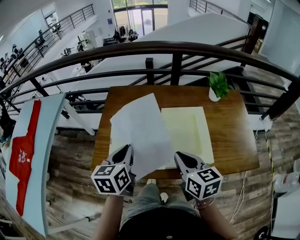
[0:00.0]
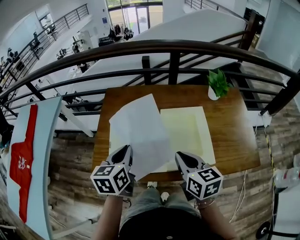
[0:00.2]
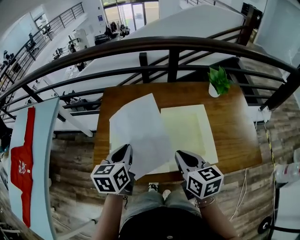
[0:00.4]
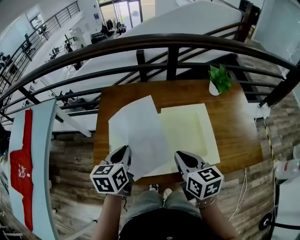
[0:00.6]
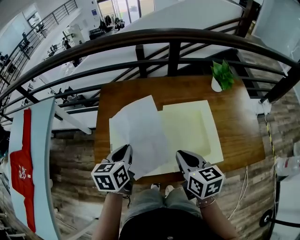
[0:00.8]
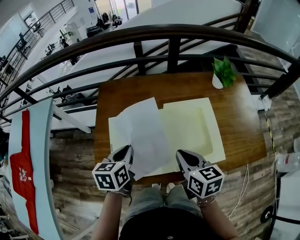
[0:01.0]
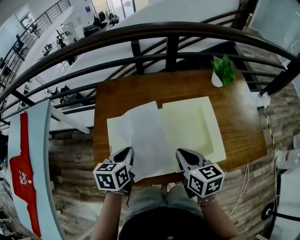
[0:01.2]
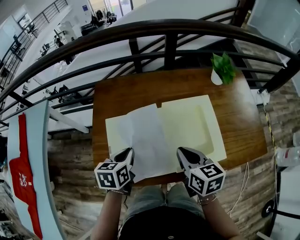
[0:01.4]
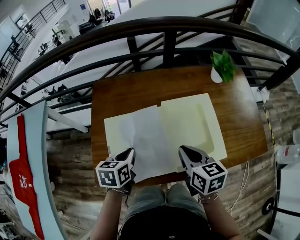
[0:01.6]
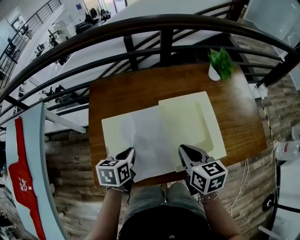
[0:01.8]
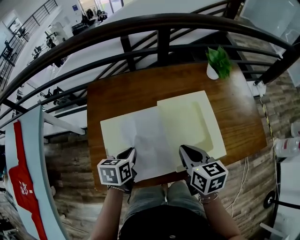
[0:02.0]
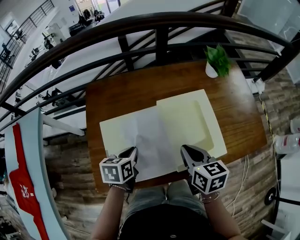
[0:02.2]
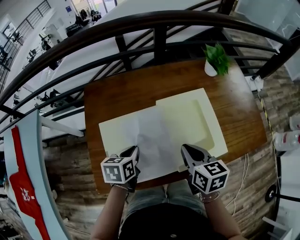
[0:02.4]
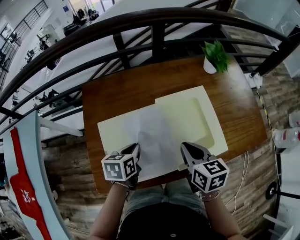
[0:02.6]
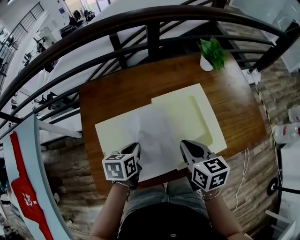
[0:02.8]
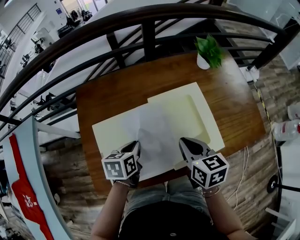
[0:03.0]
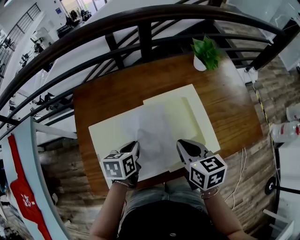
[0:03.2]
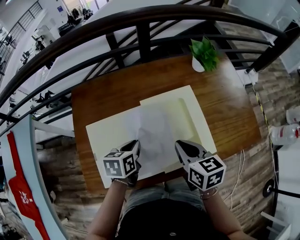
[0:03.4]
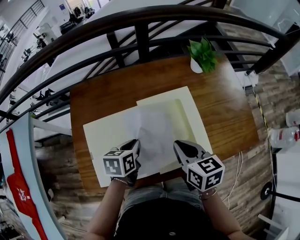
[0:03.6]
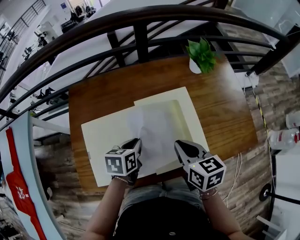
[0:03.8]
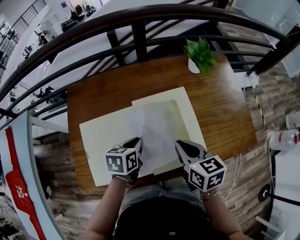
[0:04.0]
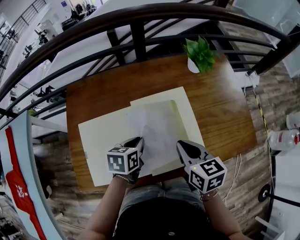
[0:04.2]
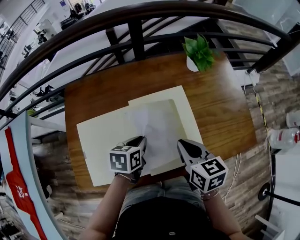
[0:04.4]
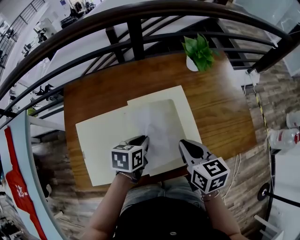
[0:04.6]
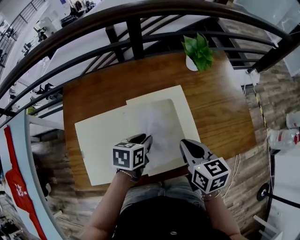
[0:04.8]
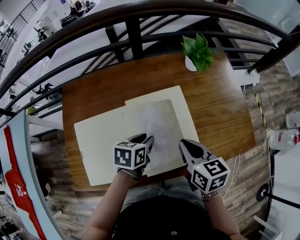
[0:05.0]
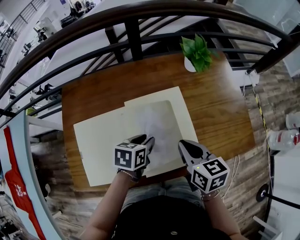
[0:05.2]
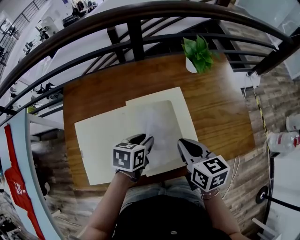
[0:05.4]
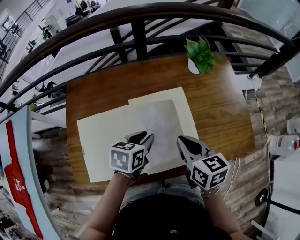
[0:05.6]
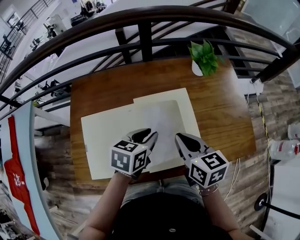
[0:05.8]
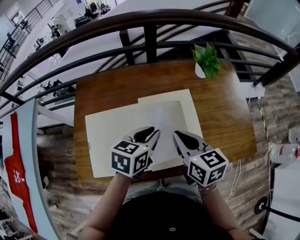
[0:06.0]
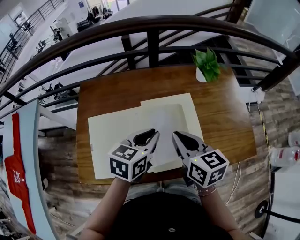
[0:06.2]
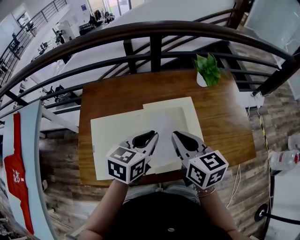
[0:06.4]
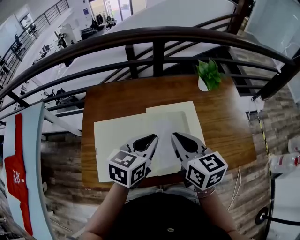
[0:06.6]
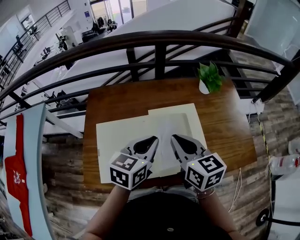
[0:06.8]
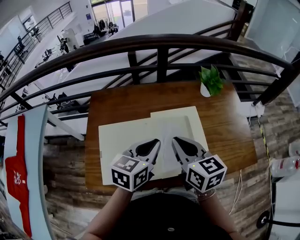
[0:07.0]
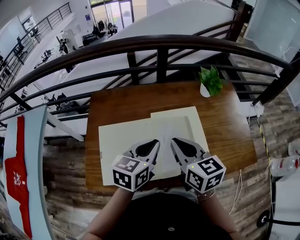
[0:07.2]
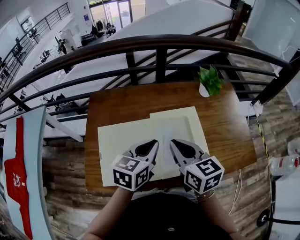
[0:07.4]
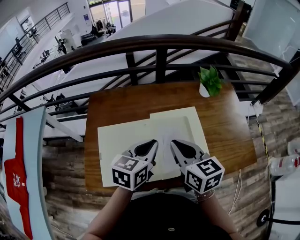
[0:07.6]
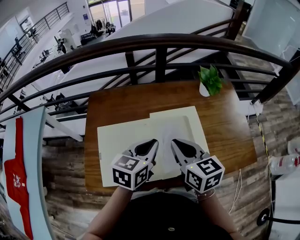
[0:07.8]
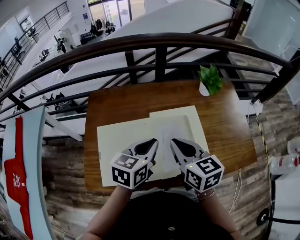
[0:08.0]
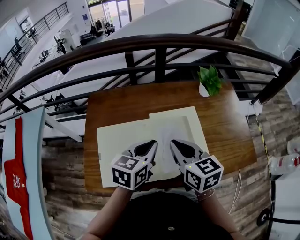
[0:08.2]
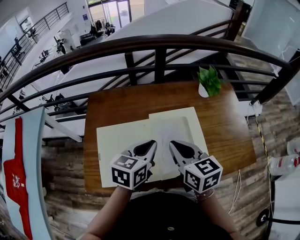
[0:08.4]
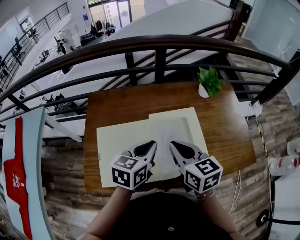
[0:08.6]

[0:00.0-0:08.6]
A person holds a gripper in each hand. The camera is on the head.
0.0 to 1.4 s: The right gripper is displaced forward and downward by about 10 cm. The left gripper heads downward and forward, covering some 10 cm, and changes its angle by some 20 degrees.
1.4 to 2.8 s: The left gripper ends up some 5 cm from where it was.
2.8 to 4.4 s: Both grippers travel together to the right, some 10 cm.
4.4 to 5.8 s: The left gripper shifts about 5 cm upward.
5.8 to 7.2 s: The left gripper heads upward, covering roughly 10 cm, while the right gripper moves to the left and upward, some 10 cm.
7.2 to 8.6 s: The grippers make only small movements.

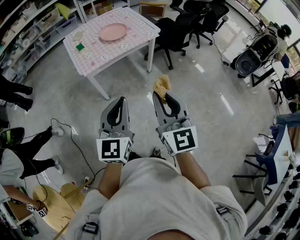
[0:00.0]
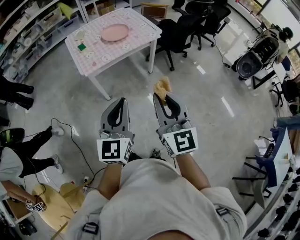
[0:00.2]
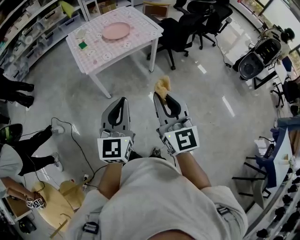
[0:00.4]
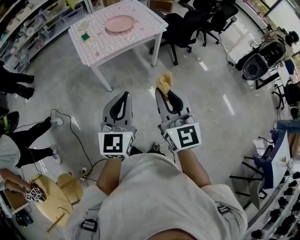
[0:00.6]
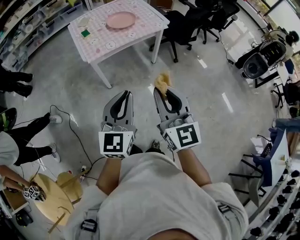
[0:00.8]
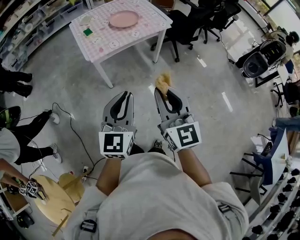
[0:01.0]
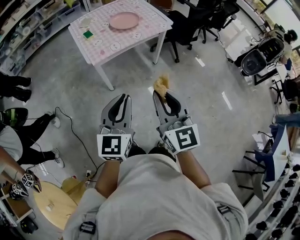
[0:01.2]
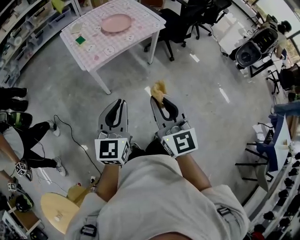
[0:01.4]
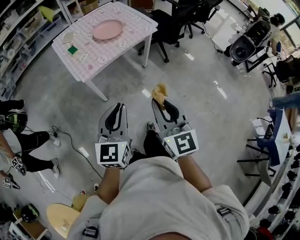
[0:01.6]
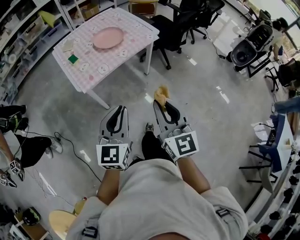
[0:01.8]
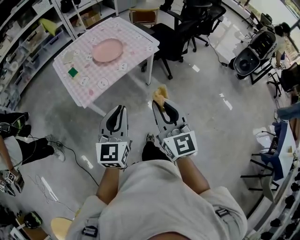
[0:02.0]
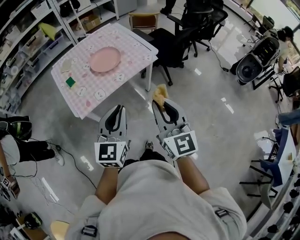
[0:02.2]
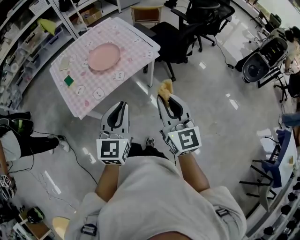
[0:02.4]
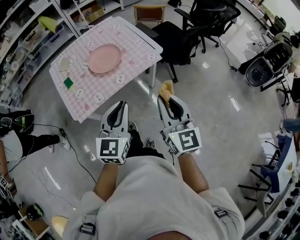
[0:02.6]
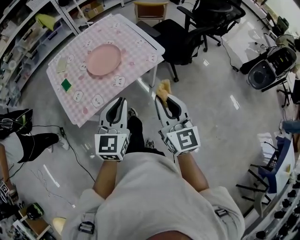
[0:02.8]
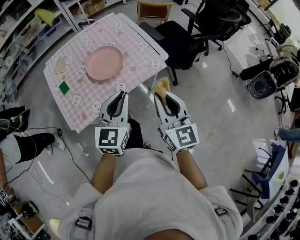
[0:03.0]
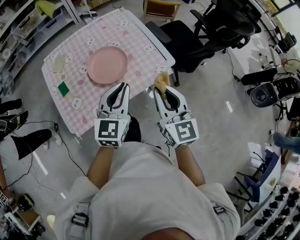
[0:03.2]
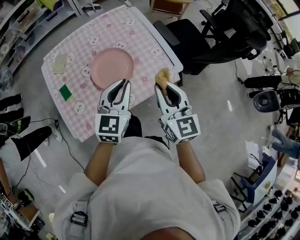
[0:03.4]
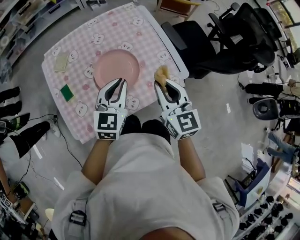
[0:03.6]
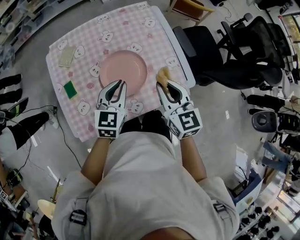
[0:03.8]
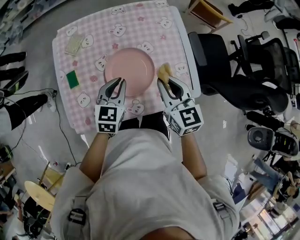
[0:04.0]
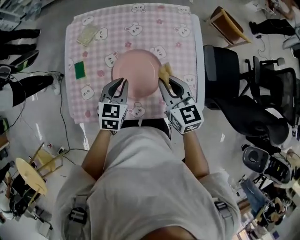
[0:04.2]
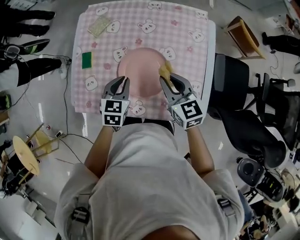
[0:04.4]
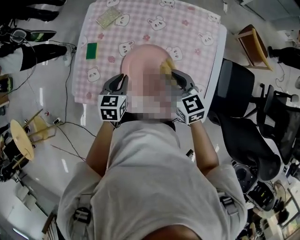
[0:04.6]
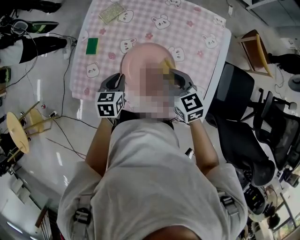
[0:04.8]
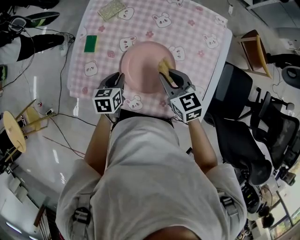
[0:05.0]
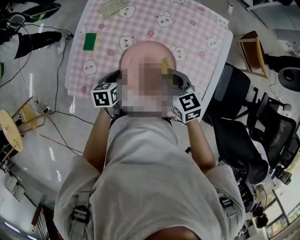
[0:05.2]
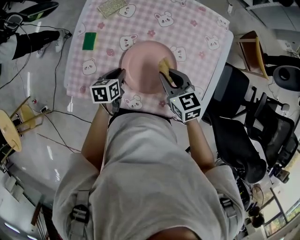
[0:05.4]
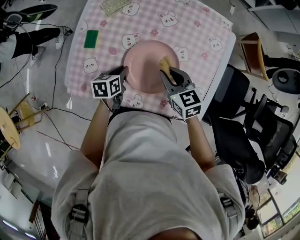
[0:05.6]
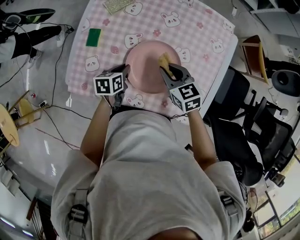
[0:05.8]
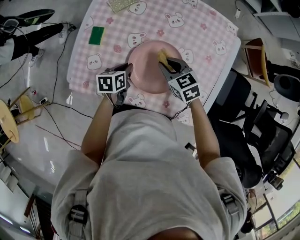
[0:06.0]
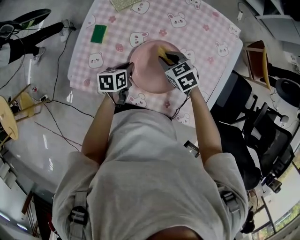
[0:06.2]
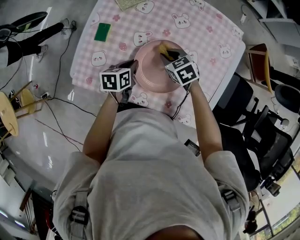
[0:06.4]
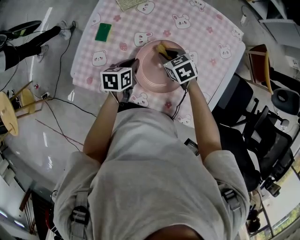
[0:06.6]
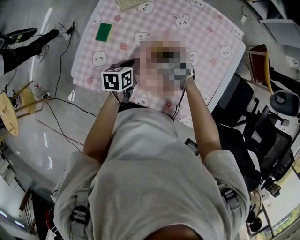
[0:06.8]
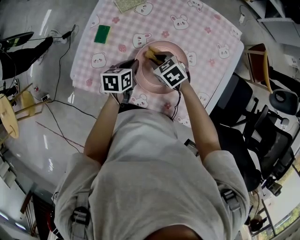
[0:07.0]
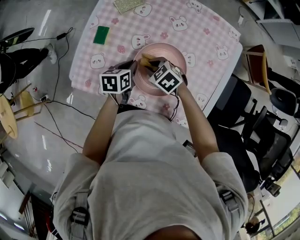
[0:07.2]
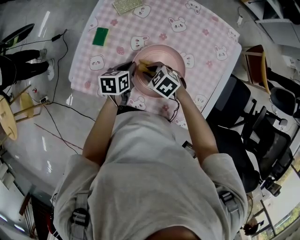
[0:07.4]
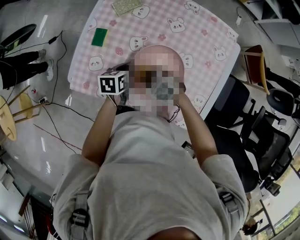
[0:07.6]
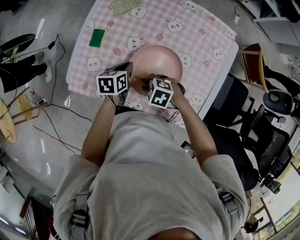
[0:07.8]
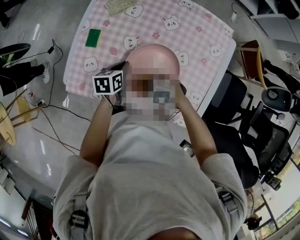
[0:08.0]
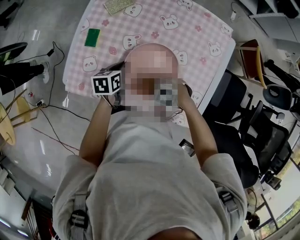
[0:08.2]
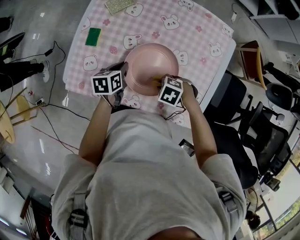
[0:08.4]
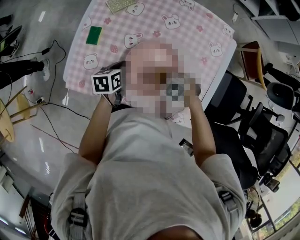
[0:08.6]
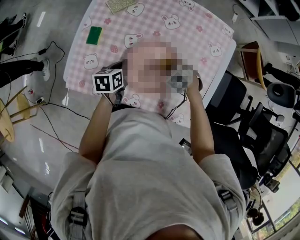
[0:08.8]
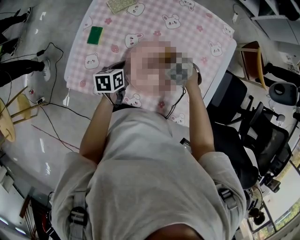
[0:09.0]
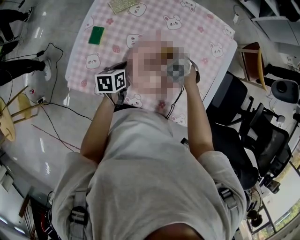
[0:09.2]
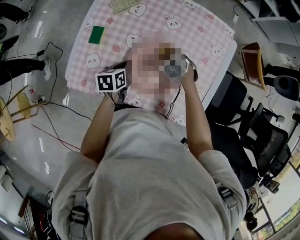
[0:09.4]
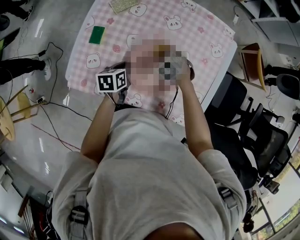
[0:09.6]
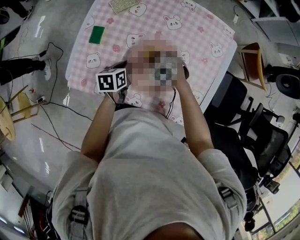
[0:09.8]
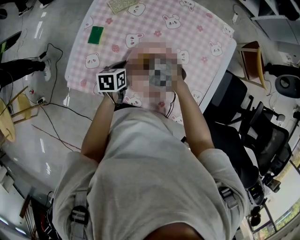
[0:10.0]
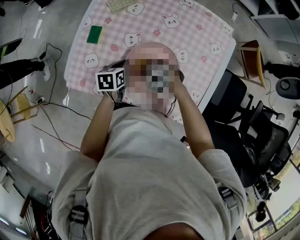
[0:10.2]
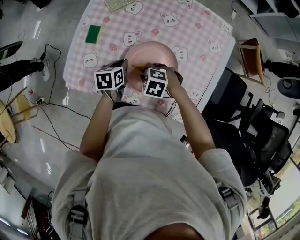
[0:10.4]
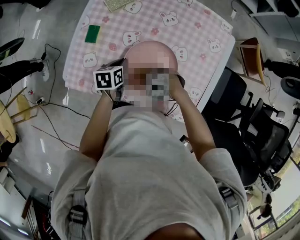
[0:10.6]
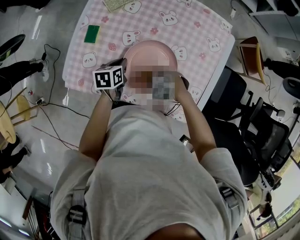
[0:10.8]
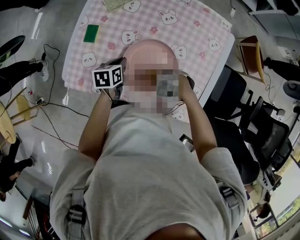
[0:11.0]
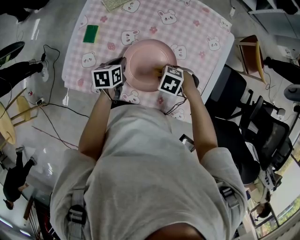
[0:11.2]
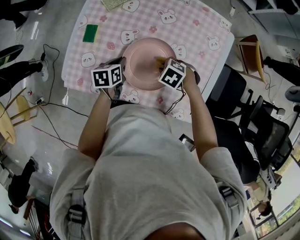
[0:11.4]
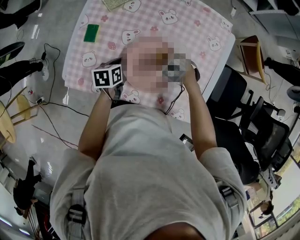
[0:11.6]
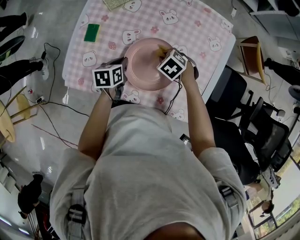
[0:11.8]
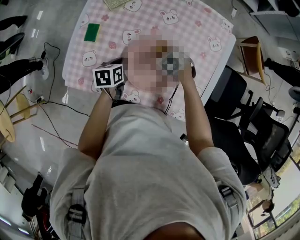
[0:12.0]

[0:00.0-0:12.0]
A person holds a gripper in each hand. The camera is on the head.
0.0 to 1.6 s: The left gripper goes some 10 cm to the left, downward and forward; the right gripper travels to the left and downward by about 10 cm.
1.6 to 3.0 s: The two grippers travel together, forward, some 40 cm.
3.0 to 4.4 s: The right gripper changes place by approximately 40 cm, and turns by about 60 degrees. Meanwhile the left gripper ends up roughly 35 cm from where it was, and tilts its fingers about 30 degrees downward.
4.4 to 6.0 s: The left gripper shifts some 10 cm downward, and swivels some 40 degrees; the right gripper goes approximately 15 cm downward, forward and to the left, and swivels roughly 30 degrees.
6.0 to 7.6 s: The right gripper heads to the left, backward and downward, covering approximately 10 cm, and rotates roughly 40 degrees.
7.6 to 9.0 s: The right gripper moves about 15 cm, and rotates some 20 degrees.
9.0 to 10.4 s: The right gripper moves some 15 cm, and changes its angle by about 30 degrees.
10.4 to 12.0 s: The right gripper changes place by roughly 15 cm, and turns by some 30 degrees.

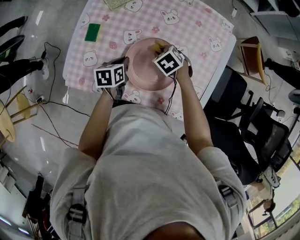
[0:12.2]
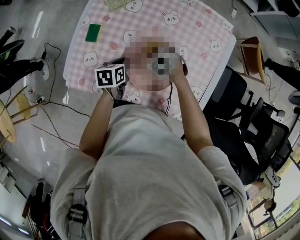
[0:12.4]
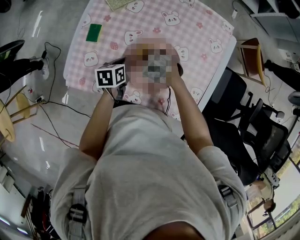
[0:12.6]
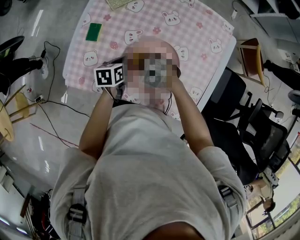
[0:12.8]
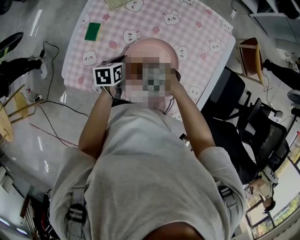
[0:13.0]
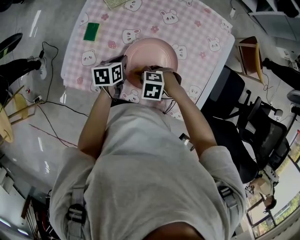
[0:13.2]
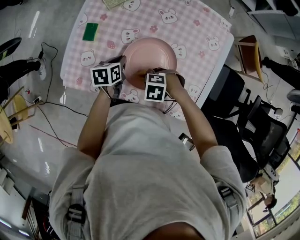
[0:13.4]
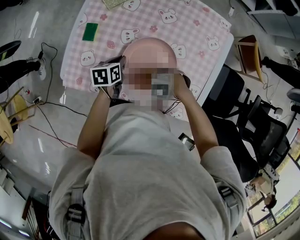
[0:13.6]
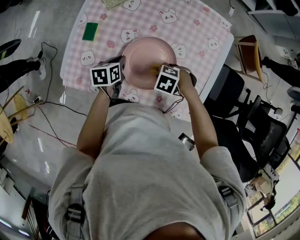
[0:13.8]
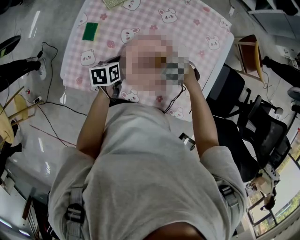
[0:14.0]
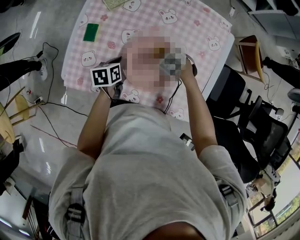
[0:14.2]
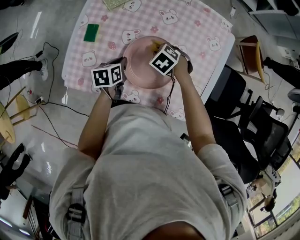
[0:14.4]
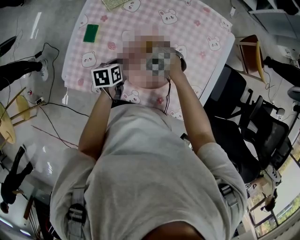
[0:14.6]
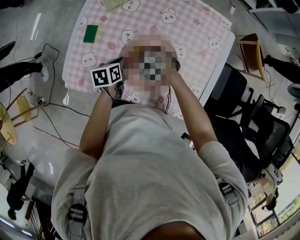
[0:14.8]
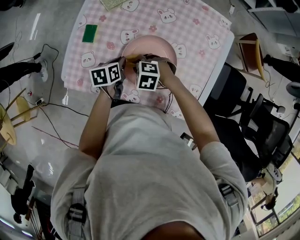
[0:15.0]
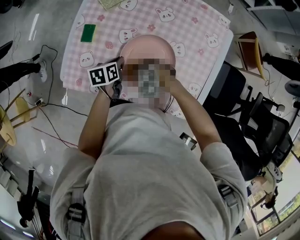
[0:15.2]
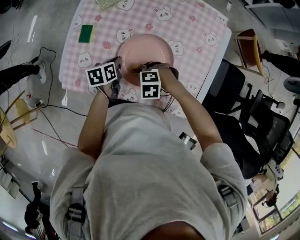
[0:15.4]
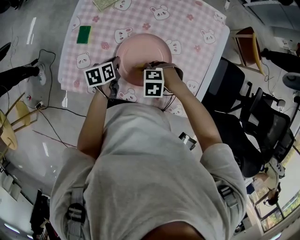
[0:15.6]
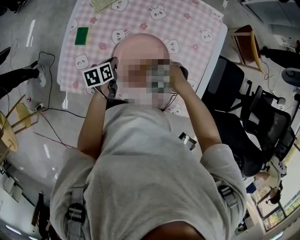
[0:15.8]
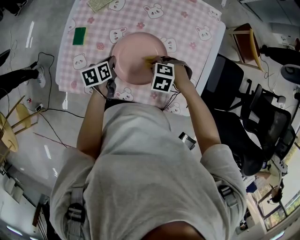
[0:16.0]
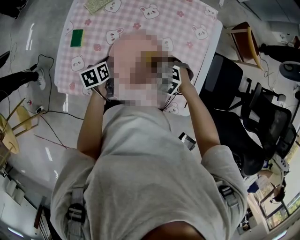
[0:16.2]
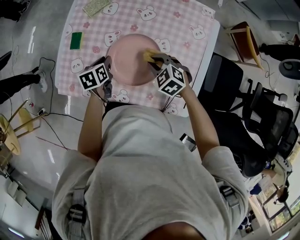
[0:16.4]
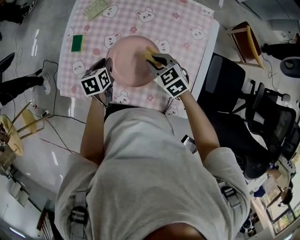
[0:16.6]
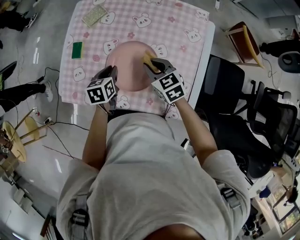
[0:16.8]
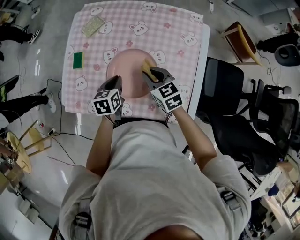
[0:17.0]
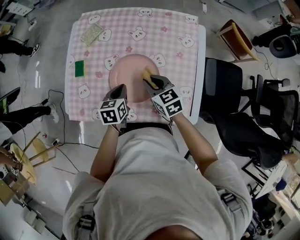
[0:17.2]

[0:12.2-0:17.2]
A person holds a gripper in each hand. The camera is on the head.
12.2 to 13.8 s: The right gripper moves about 15 cm, and rotates roughly 30 degrees.
15.6 to 17.2 s: The left gripper changes place by some 10 cm, and changes its angle by roughly 20 degrees. Meanwhile the right gripper travels upward by roughly 10 cm, and angles its fingers upward, by approximately 40 degrees.
